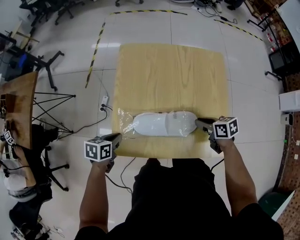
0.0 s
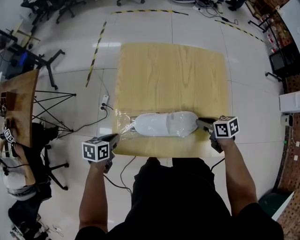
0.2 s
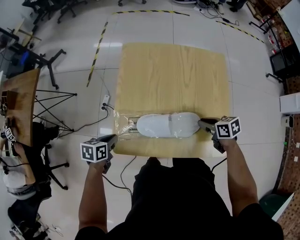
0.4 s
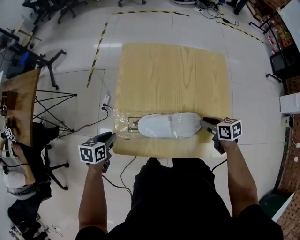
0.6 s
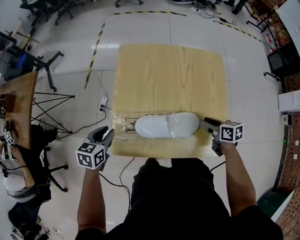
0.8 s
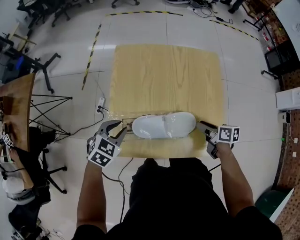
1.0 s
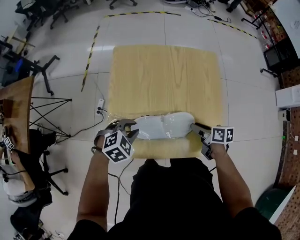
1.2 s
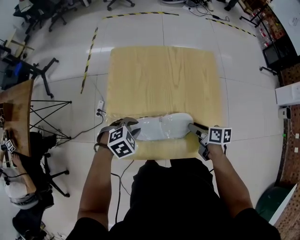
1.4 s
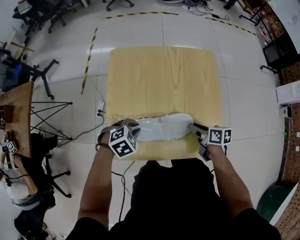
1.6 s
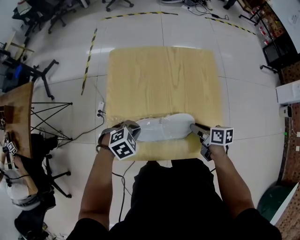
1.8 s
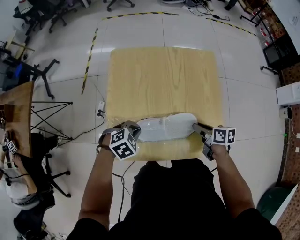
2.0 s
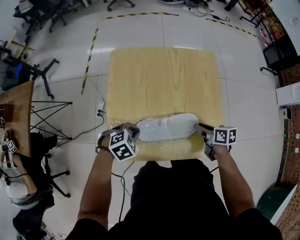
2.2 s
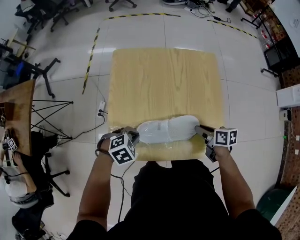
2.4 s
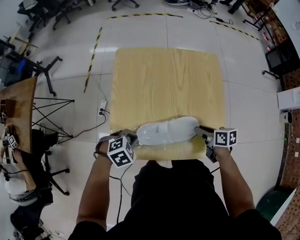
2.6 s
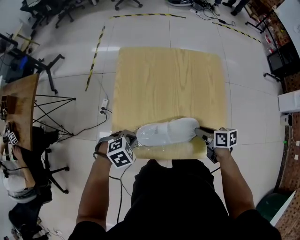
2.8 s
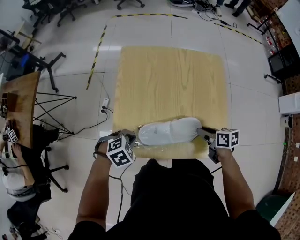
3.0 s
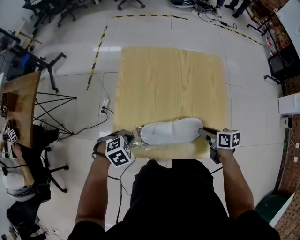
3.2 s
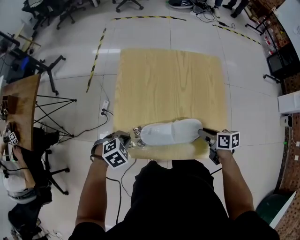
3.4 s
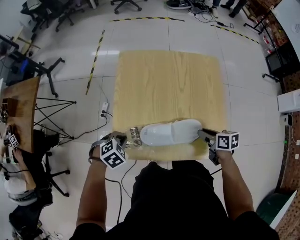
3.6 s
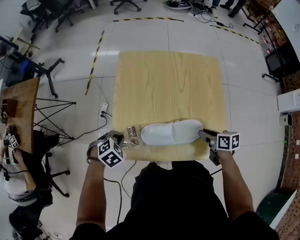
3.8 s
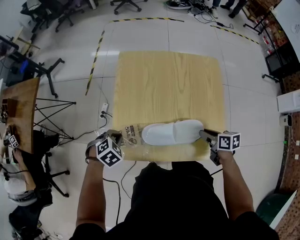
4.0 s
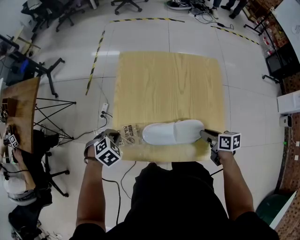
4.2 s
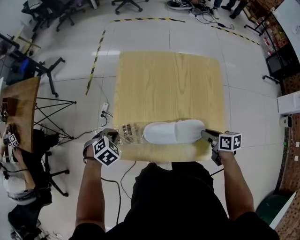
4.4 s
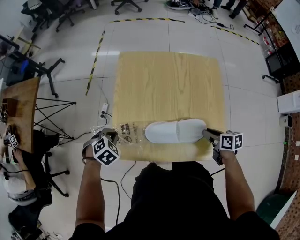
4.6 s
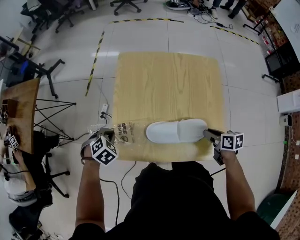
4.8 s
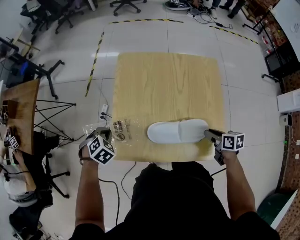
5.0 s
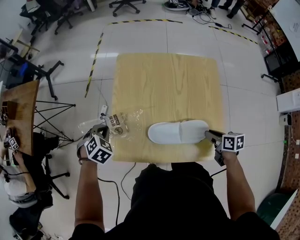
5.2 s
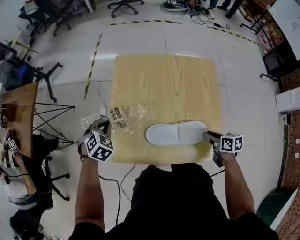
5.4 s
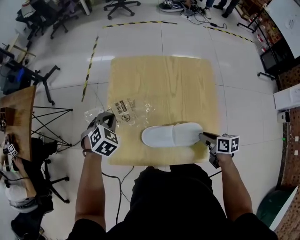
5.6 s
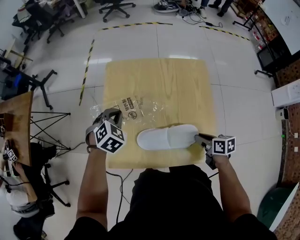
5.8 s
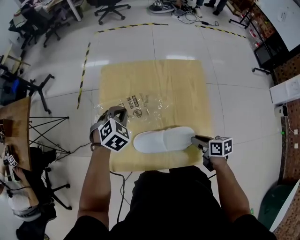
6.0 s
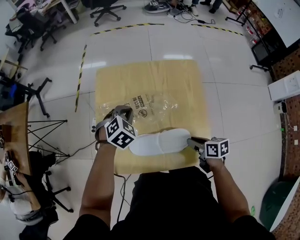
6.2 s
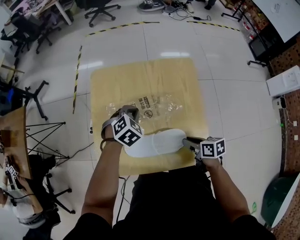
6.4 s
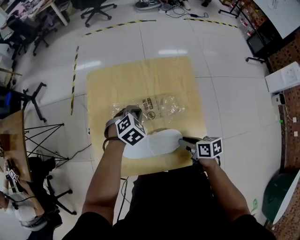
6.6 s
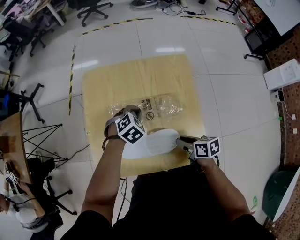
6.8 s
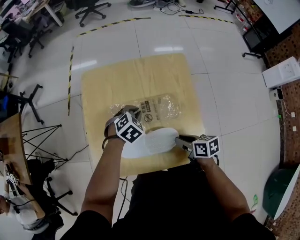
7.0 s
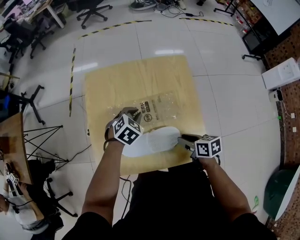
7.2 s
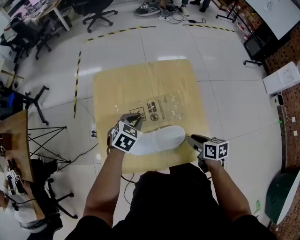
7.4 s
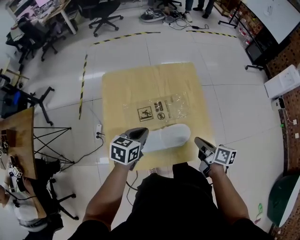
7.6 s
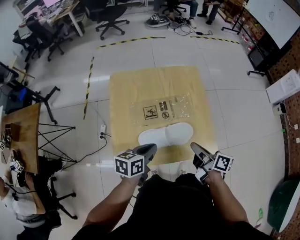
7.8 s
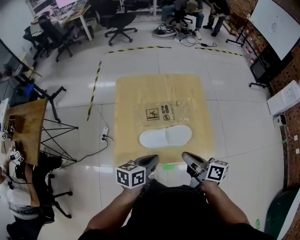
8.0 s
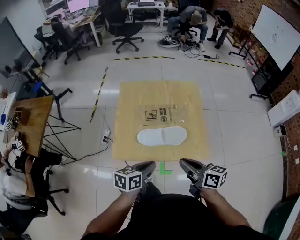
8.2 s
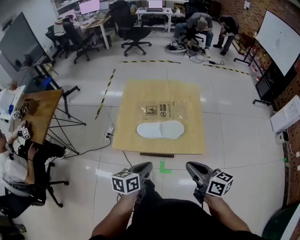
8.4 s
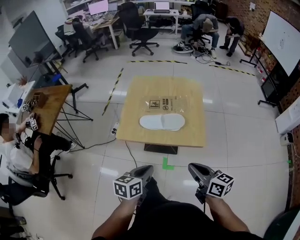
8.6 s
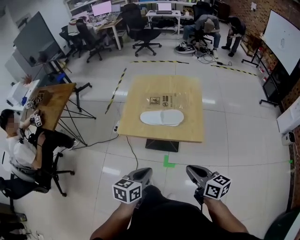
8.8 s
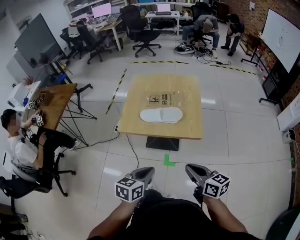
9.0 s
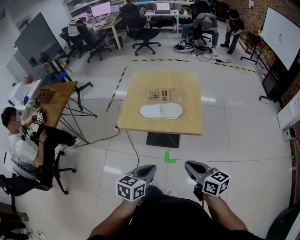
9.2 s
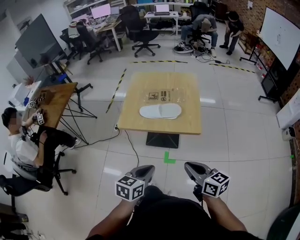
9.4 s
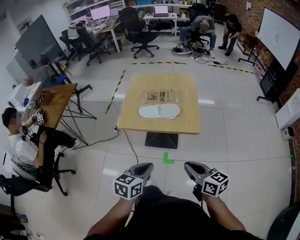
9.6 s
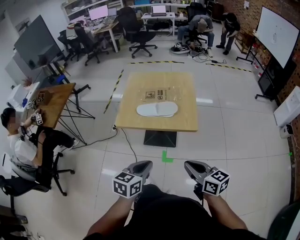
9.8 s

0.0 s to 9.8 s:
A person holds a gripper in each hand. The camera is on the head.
0.0 to 1.4 s: The left gripper is displaced to the right by about 15 cm, rolls clockwise, seen from behind, by some 60 degrees, and opens its fingers; the right gripper rotates roughly 20 degrees, and opens.
1.4 to 2.8 s: The left gripper moves backward, about 5 cm, and closes up.
2.8 to 4.2 s: The left gripper heads to the left, covering roughly 10 cm.
4.2 to 5.6 s: The left gripper heads forward and upward, covering some 10 cm.
5.6 to 7.0 s: The left gripper heads to the right, covering approximately 25 cm, and rotates about 20 degrees.
7.0 to 8.4 s: The left gripper is displaced backward and upward by approximately 40 cm, and rolls counterclockwise, seen from behind, by about 60 degrees. Meanwhile the right gripper moves upward and backward, about 30 cm, swivels about 30 degrees, and closes.
8.4 to 9.8 s: The grippers both shift backward by about 15 cm.

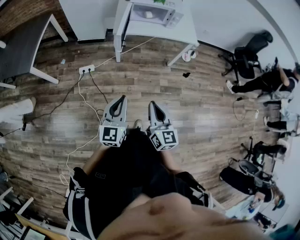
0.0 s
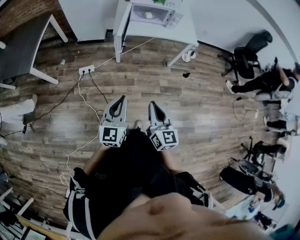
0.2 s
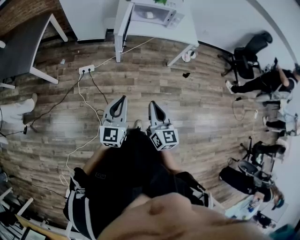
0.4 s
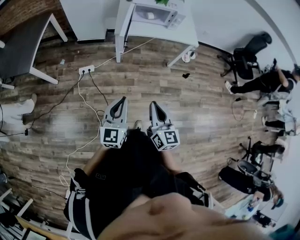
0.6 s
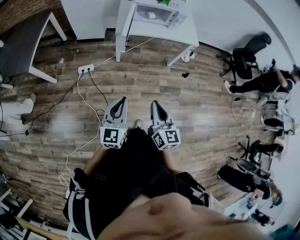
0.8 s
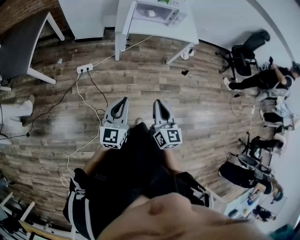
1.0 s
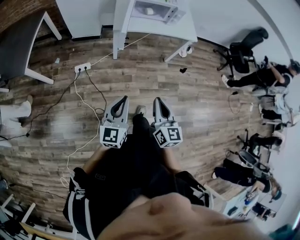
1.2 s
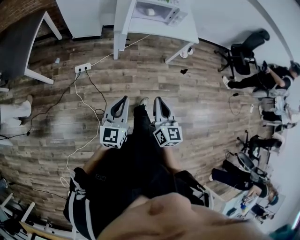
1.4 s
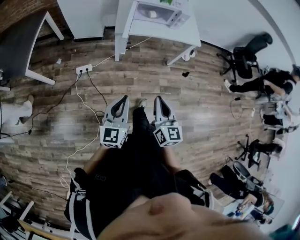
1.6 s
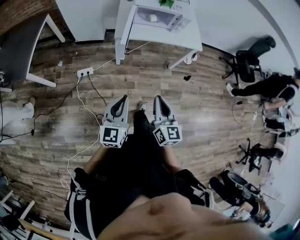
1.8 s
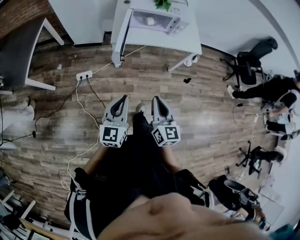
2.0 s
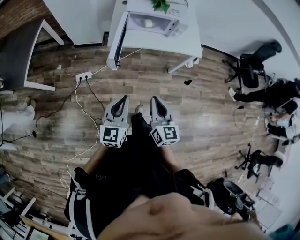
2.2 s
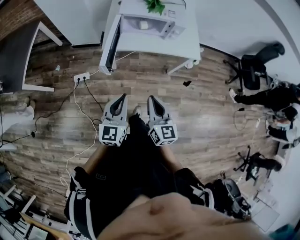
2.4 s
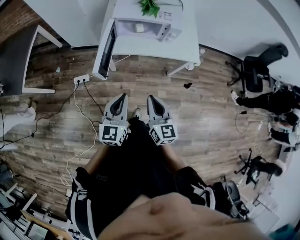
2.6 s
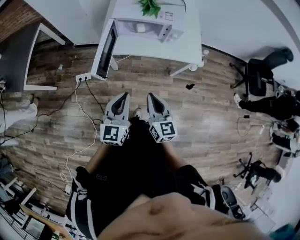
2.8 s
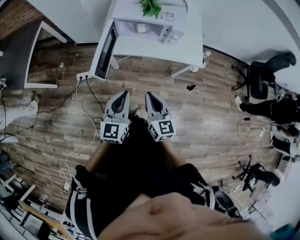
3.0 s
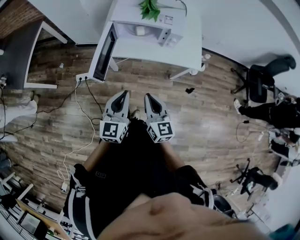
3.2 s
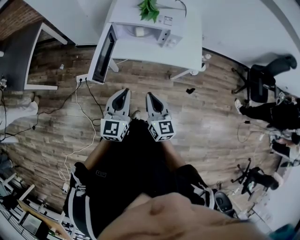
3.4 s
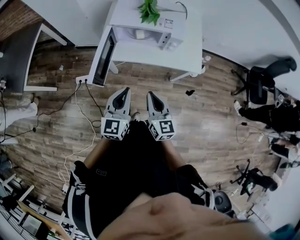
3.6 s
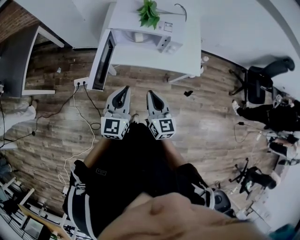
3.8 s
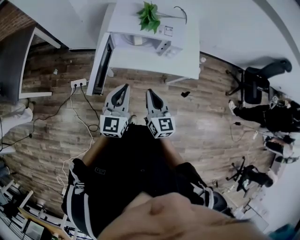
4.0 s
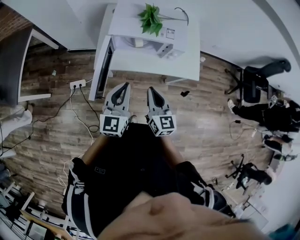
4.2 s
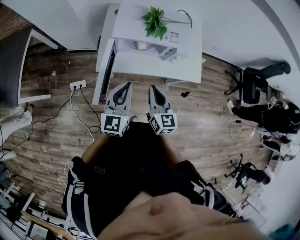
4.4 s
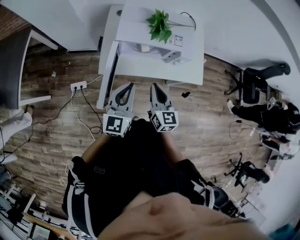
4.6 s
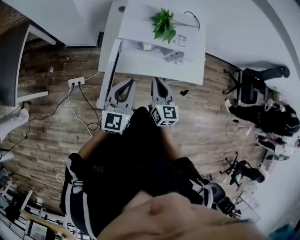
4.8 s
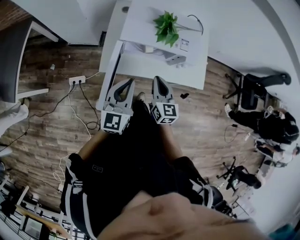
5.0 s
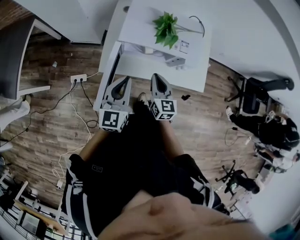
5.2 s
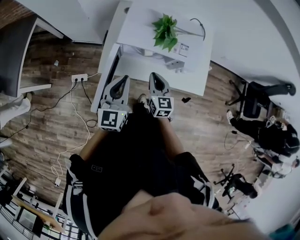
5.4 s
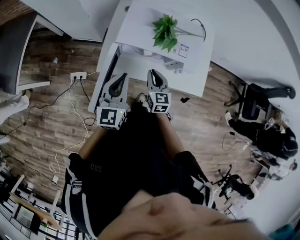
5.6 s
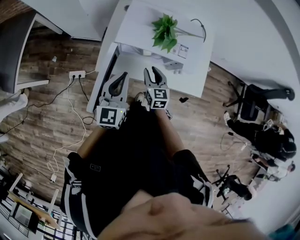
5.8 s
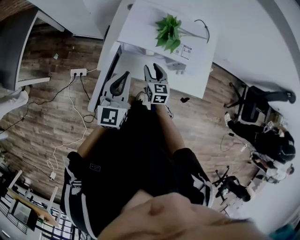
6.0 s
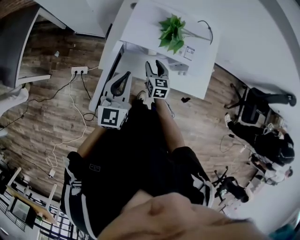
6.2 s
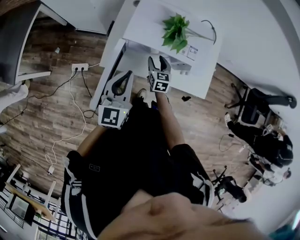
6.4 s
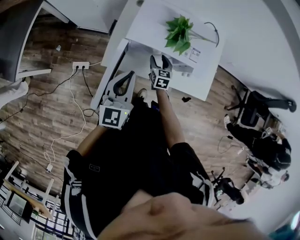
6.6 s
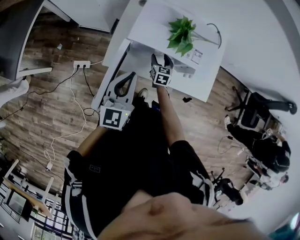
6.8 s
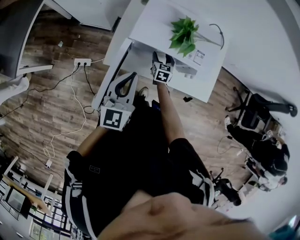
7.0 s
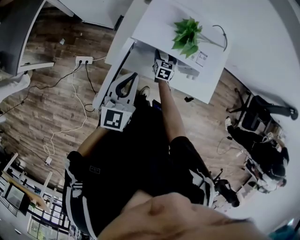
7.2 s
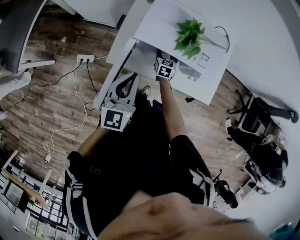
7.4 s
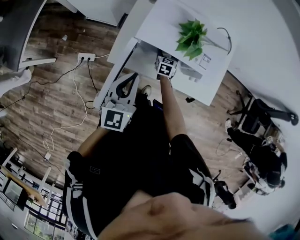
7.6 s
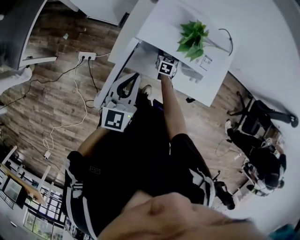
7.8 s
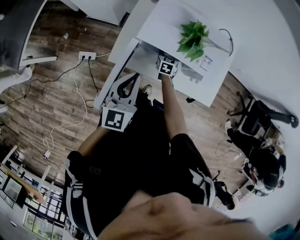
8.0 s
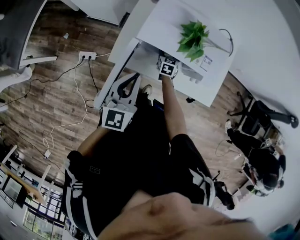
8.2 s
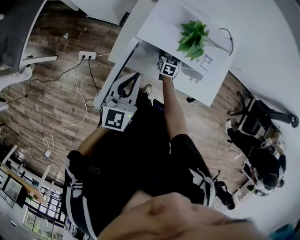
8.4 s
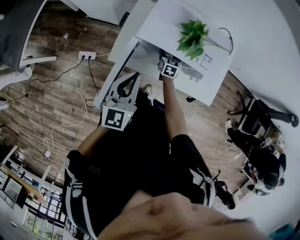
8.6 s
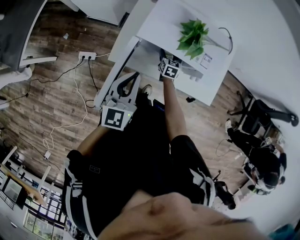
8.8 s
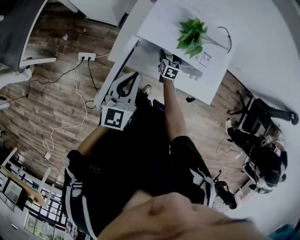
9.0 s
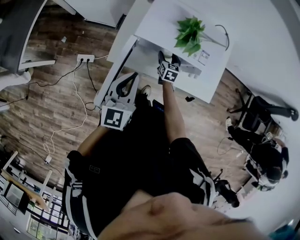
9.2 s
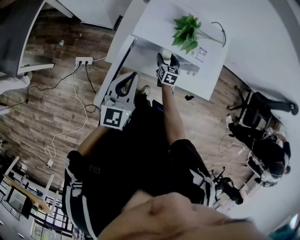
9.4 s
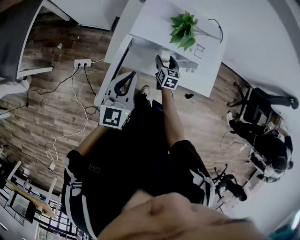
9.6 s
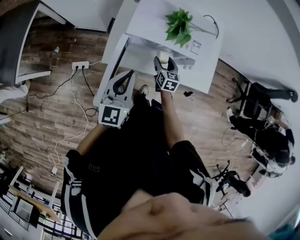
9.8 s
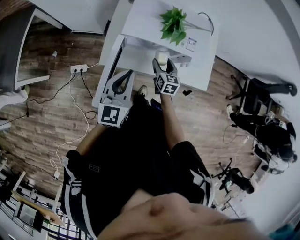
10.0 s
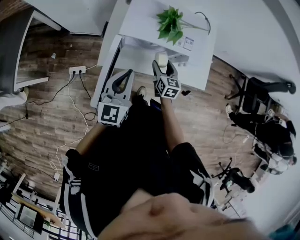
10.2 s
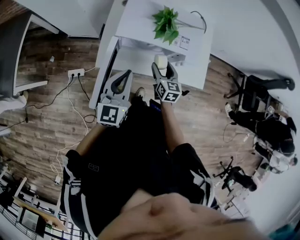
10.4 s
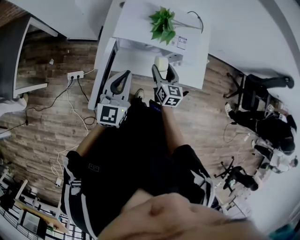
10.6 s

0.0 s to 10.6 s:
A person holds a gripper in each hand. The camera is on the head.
0.0 to 1.6 s: Both grippers travel together forward, about 5 cm.
1.6 to 3.0 s: Both grippers travel together forward and to the right, some 30 cm.
3.0 to 4.6 s: The grippers both shift forward by approximately 20 cm.
4.6 to 6.0 s: The right gripper moves forward and downward, some 20 cm, and opens up. Meanwhile the left gripper is displaced forward by approximately 10 cm.
6.0 to 7.6 s: The right gripper heads downward and forward, covering about 20 cm.
7.6 to 9.0 s: The grippers move only a little.
9.0 to 10.6 s: The right gripper travels upward and backward by some 20 cm.

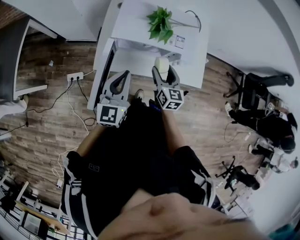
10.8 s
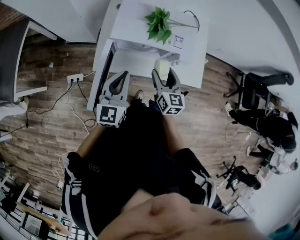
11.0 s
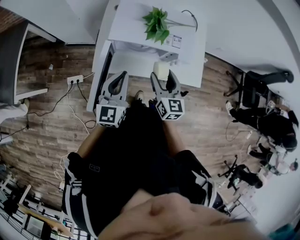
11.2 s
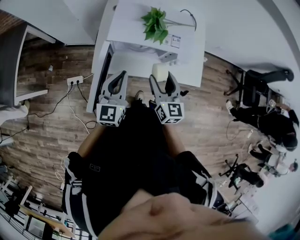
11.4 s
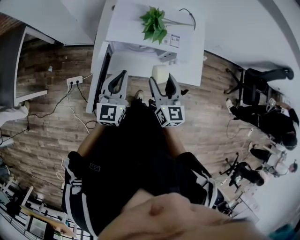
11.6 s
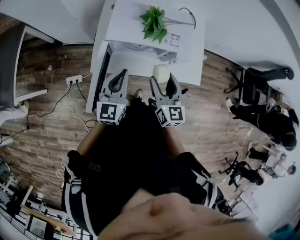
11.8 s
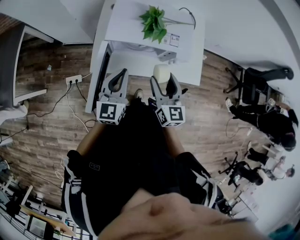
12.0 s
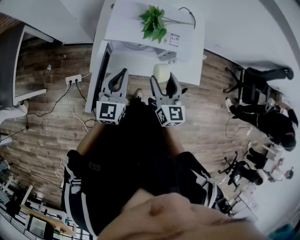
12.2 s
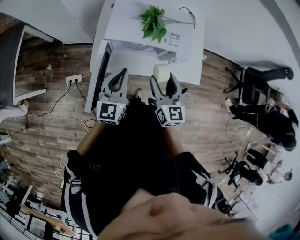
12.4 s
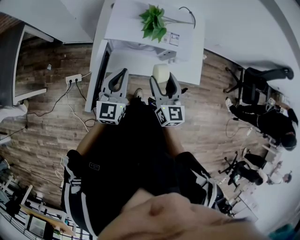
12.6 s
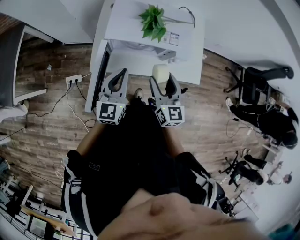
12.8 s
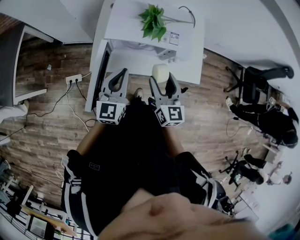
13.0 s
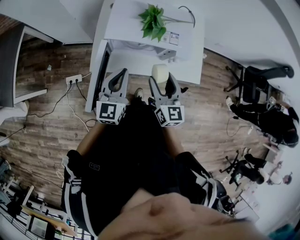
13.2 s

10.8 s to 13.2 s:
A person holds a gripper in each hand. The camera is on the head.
10.8 to 12.0 s: The right gripper heads upward, covering approximately 10 cm.
12.0 to 13.2 s: Both grippers stay about where they are.

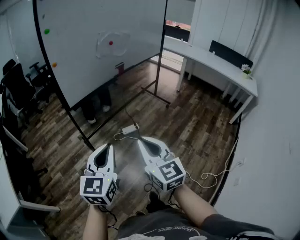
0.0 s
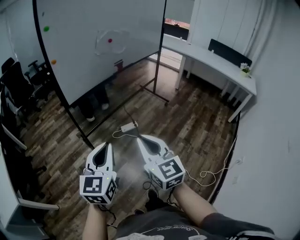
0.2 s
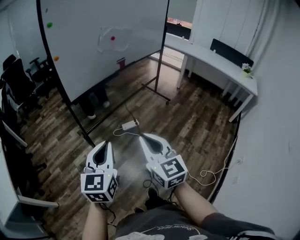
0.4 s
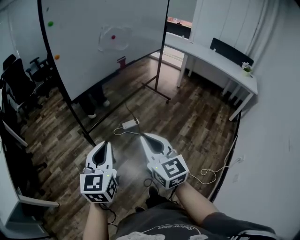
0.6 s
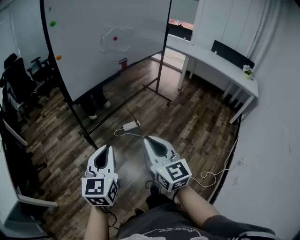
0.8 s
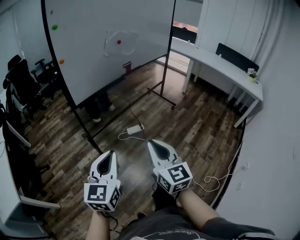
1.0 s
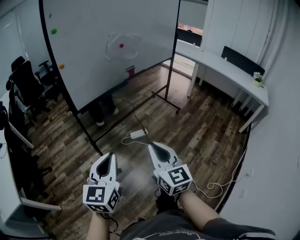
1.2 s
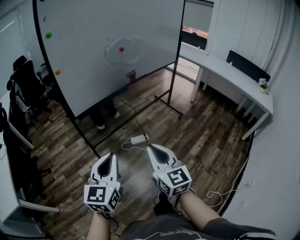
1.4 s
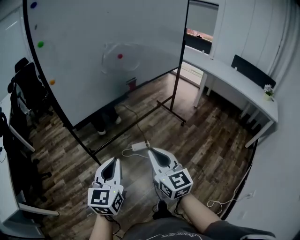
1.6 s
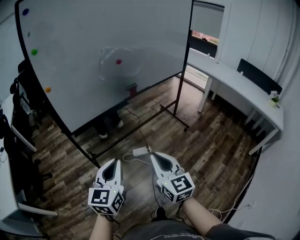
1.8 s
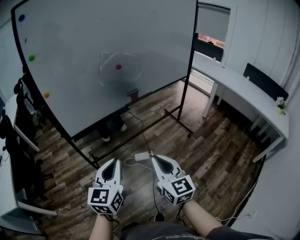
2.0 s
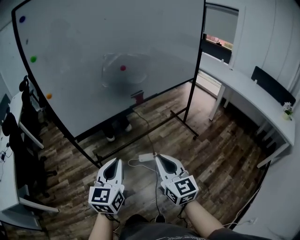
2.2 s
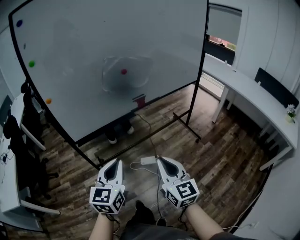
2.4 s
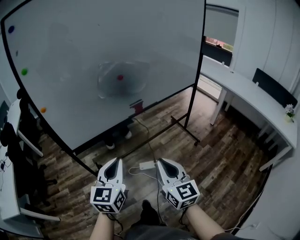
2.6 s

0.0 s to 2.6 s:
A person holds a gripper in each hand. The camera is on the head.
0.0 to 1.2 s: The right gripper shifts by roughly 5 cm.
1.2 to 2.6 s: Both grippers move forward and to the right, approximately 35 cm.
